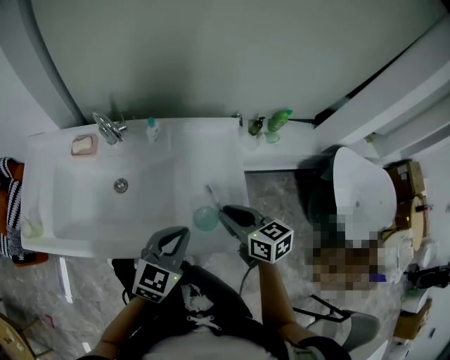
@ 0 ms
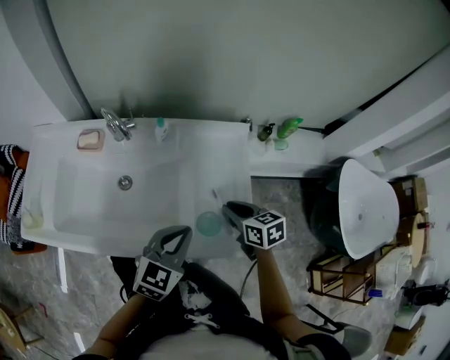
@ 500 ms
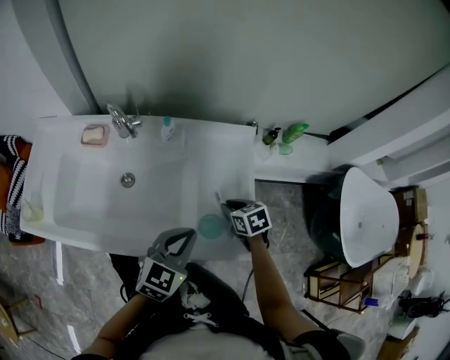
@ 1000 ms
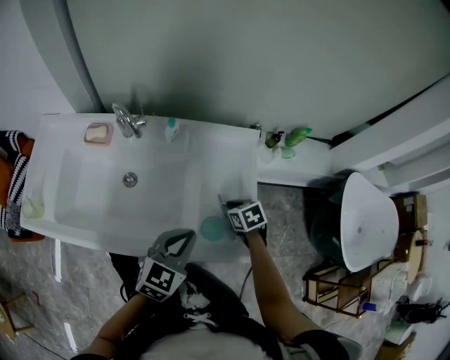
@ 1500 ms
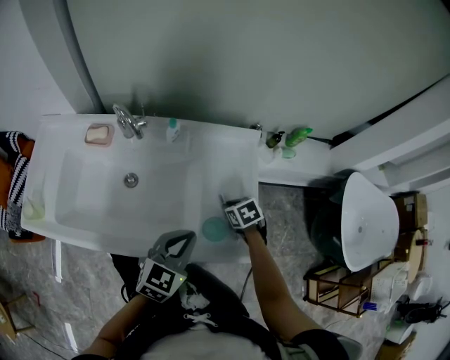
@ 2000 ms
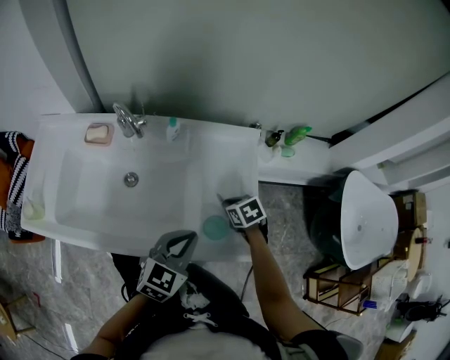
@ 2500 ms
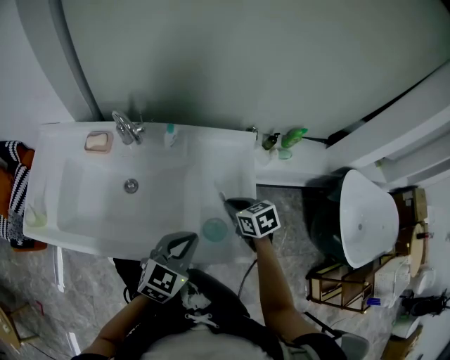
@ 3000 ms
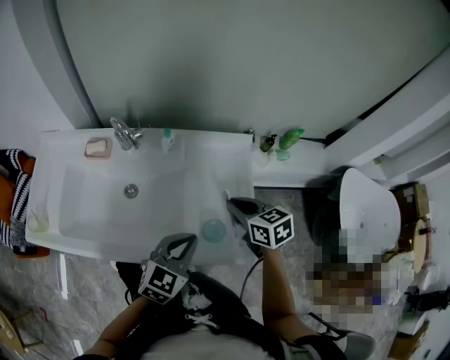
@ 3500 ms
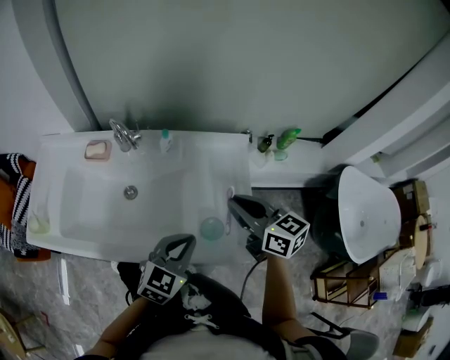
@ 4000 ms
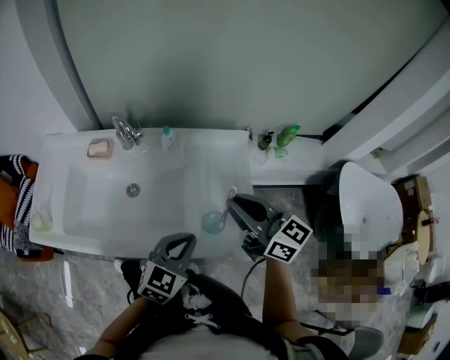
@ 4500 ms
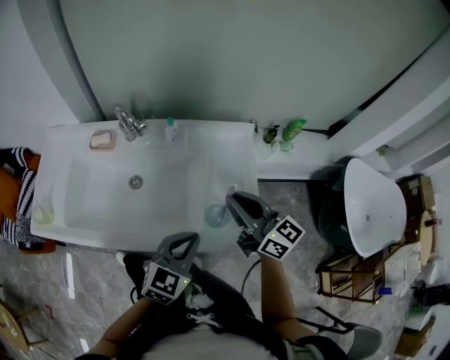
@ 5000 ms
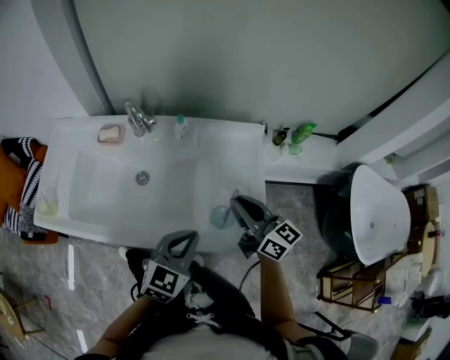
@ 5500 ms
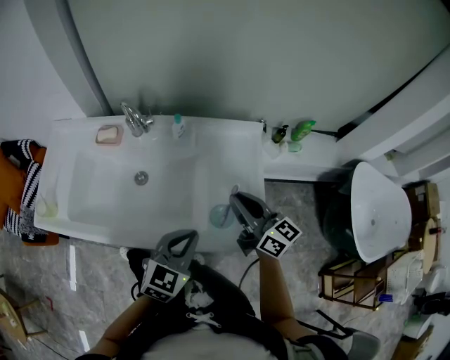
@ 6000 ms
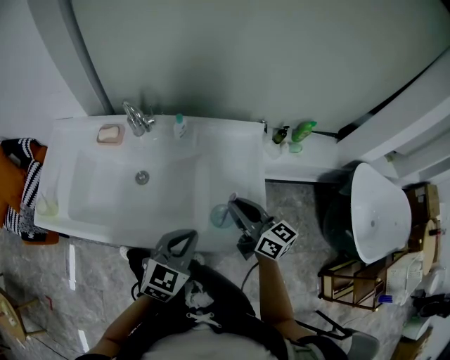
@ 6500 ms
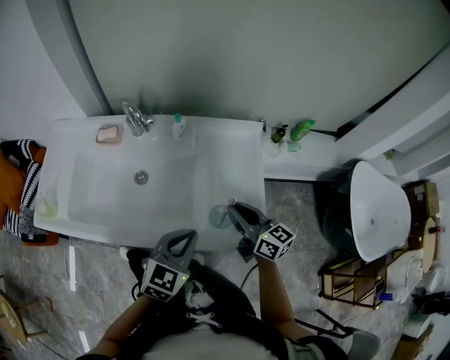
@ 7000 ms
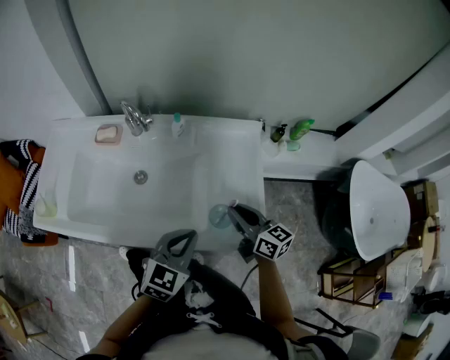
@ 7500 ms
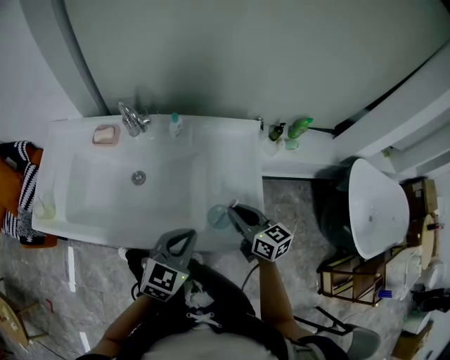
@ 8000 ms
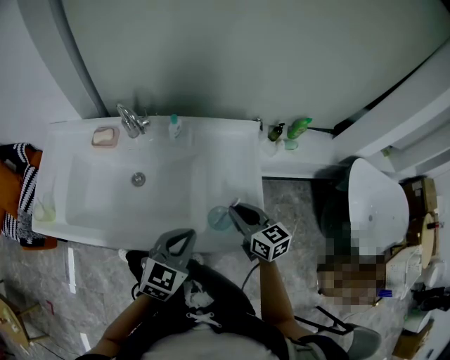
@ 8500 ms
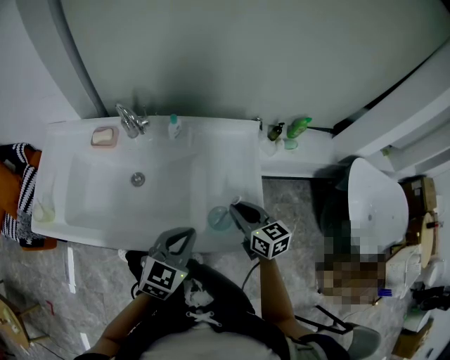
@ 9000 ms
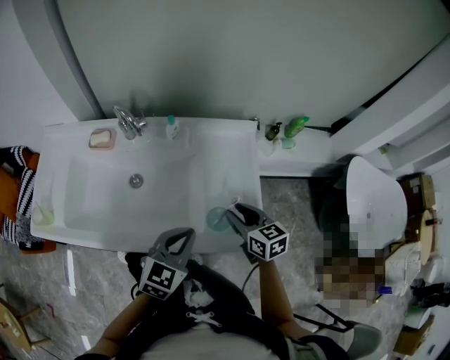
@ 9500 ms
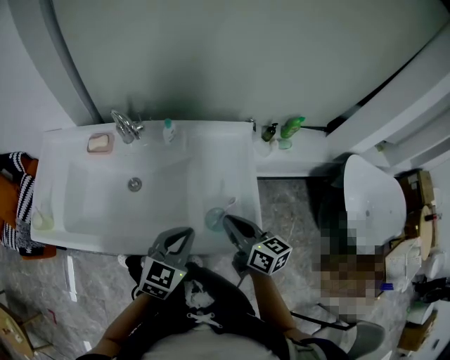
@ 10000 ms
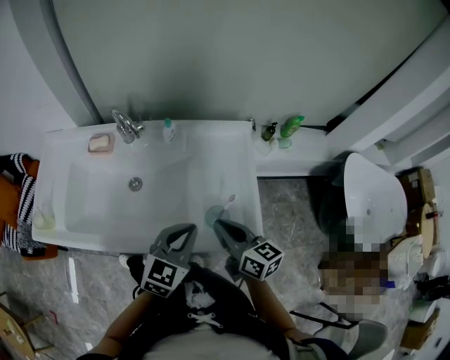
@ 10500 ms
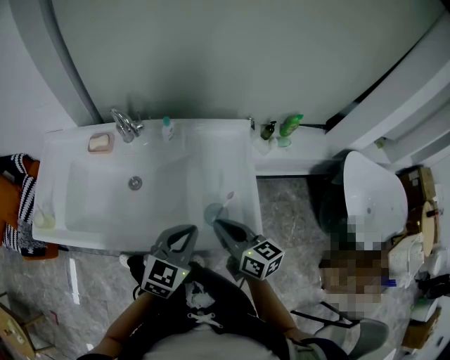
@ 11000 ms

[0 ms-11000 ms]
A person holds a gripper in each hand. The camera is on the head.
0 ms to 2000 ms: The right gripper moves downward and forward, about 20 cm, and tilts its fingers roughly 40 degrees downward.
2000 ms to 3500 ms: The right gripper is displaced upward by roughly 15 cm, and changes its angle by some 30 degrees.
3500 ms to 5500 ms: The right gripper goes some 5 cm upward, and angles its fingers upward, by about 40 degrees.
5500 ms to 7500 ms: The right gripper goes about 10 cm downward.
7500 ms to 9000 ms: There are only small adjustments of the grippers.
9000 ms to 11000 ms: The right gripper goes some 5 cm backward, and opens, then closes once more.

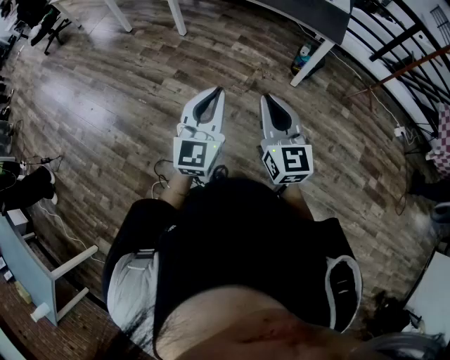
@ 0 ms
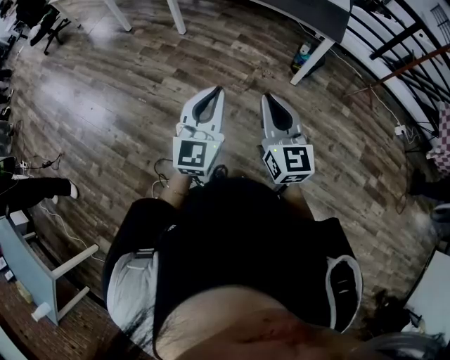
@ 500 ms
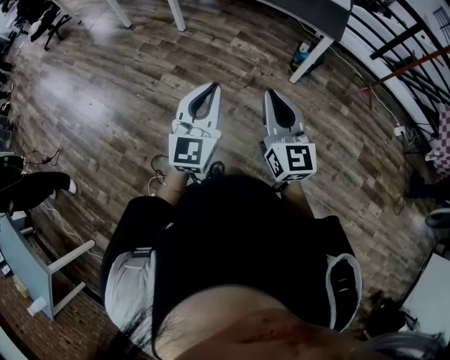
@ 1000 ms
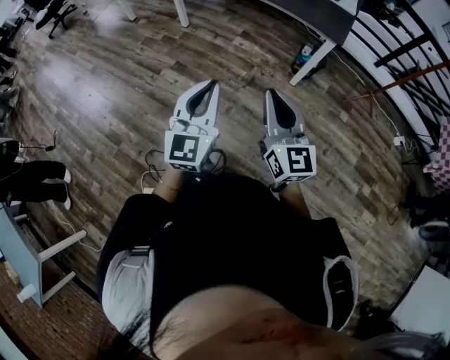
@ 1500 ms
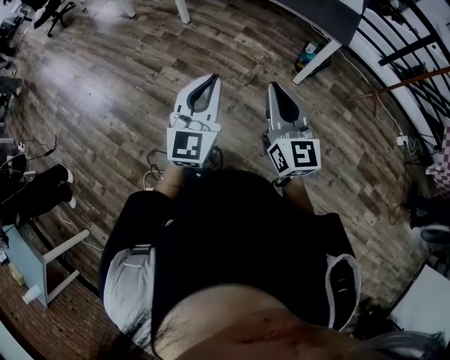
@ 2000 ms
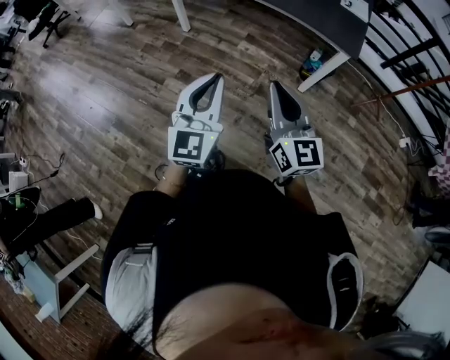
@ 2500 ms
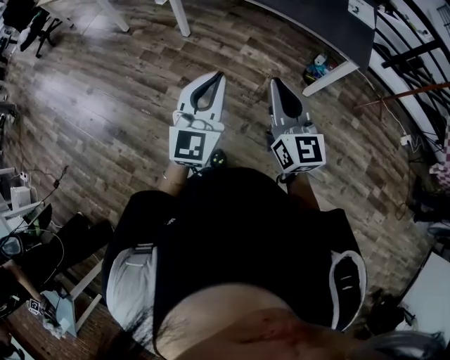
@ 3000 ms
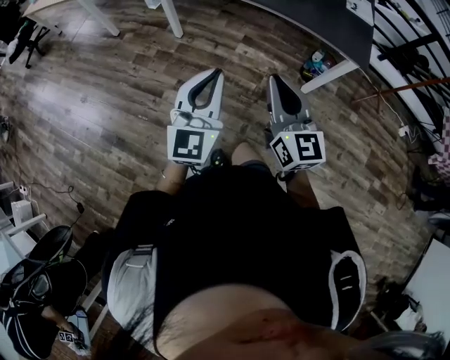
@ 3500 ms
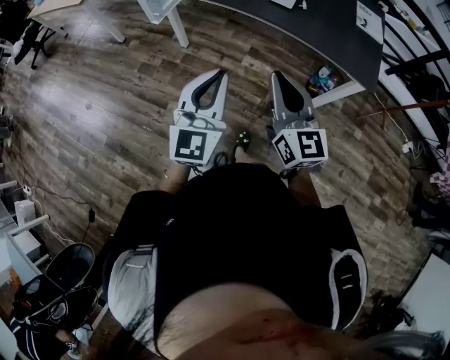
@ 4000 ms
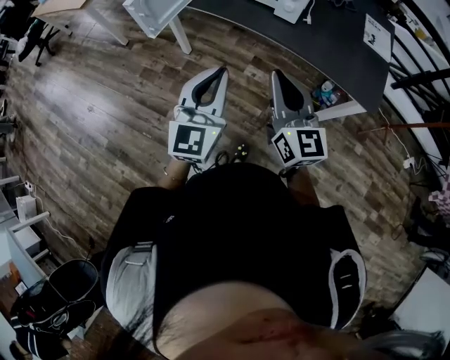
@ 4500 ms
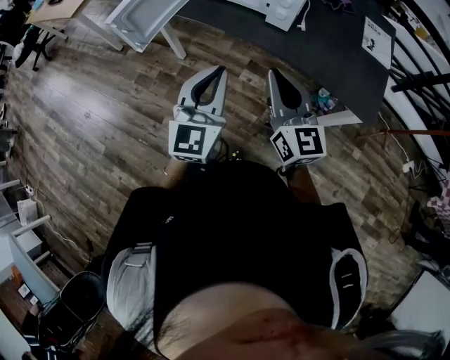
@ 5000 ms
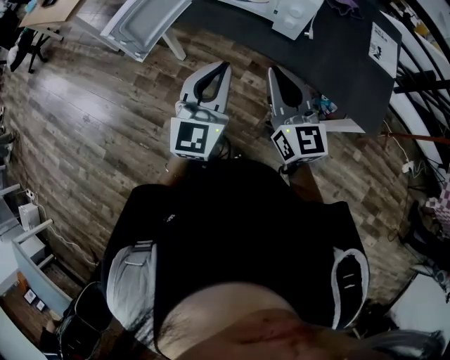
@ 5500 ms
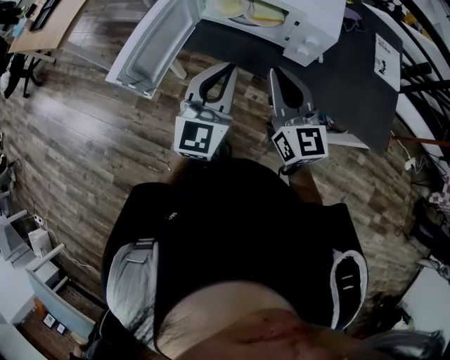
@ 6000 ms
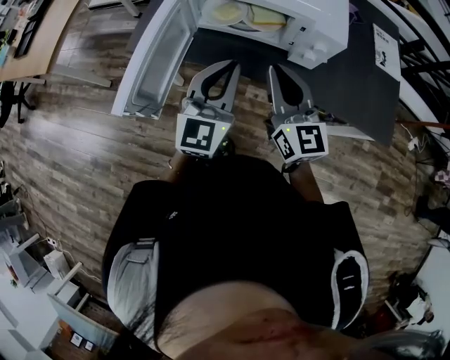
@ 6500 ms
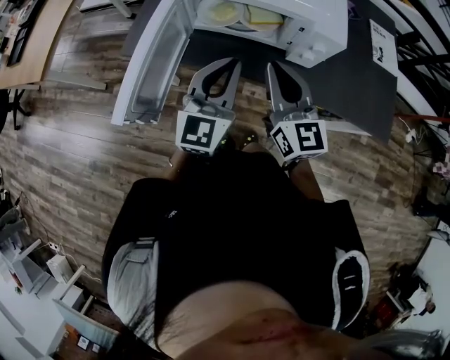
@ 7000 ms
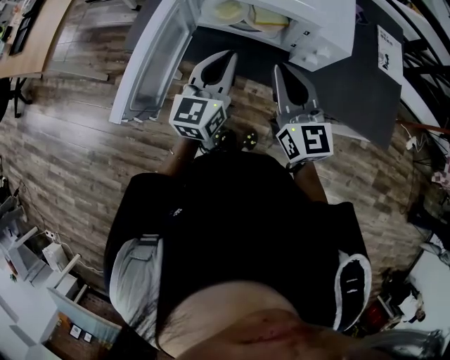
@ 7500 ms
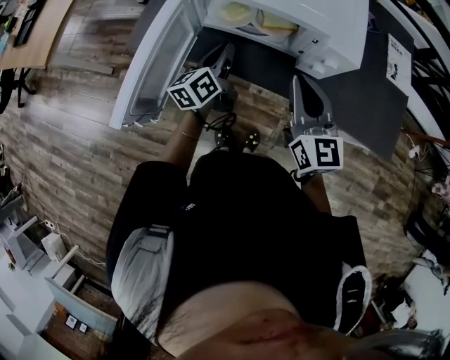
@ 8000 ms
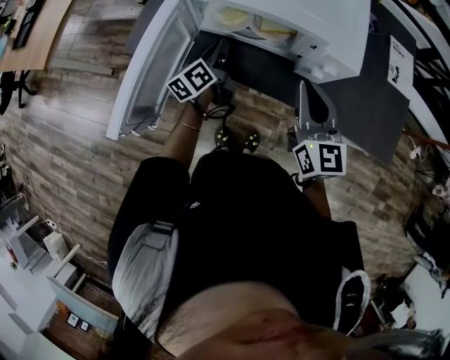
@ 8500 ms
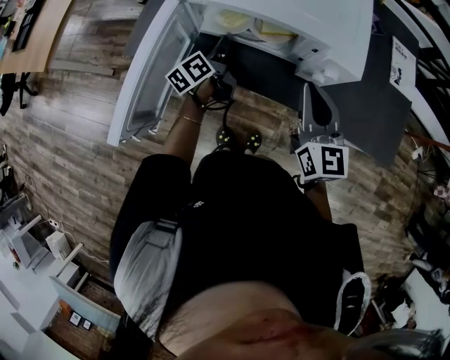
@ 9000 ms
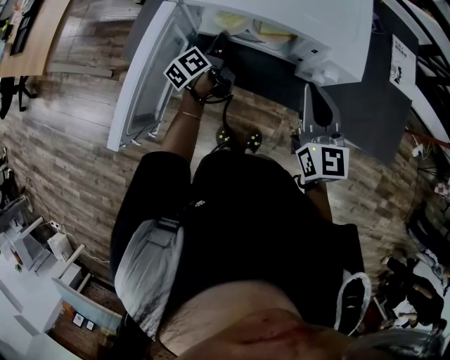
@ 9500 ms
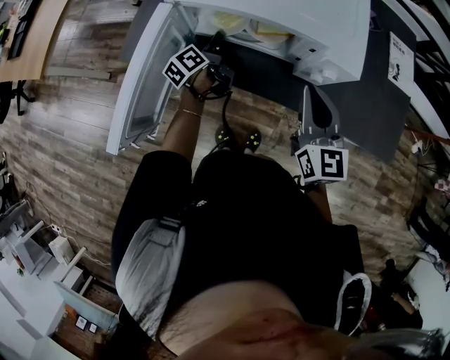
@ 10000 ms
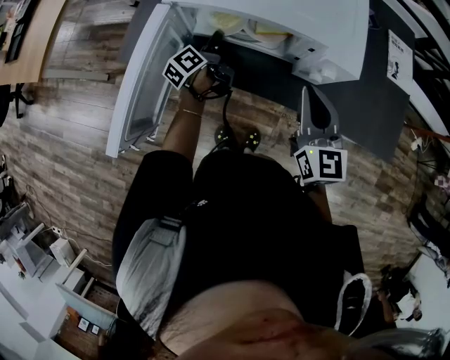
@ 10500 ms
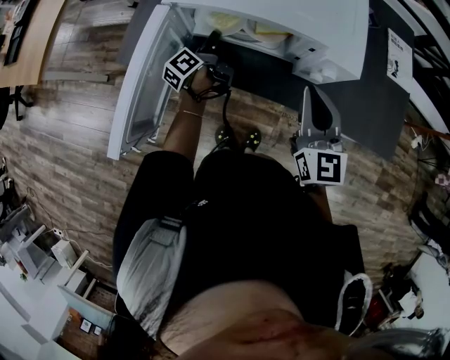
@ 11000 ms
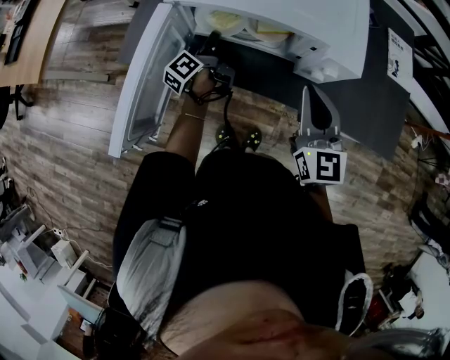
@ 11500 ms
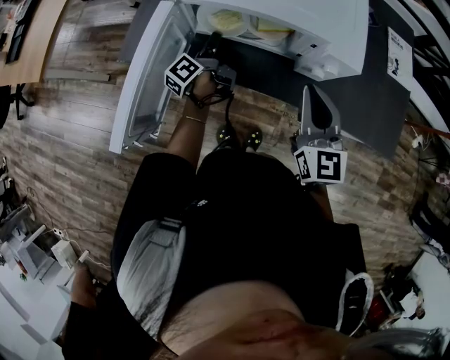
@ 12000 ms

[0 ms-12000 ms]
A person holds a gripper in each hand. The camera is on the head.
0 ms to 2000 ms: The right gripper travels to the right and forward by about 10 cm, while the left gripper shifts by roughly 5 cm.
2000 ms to 4000 ms: Both grippers travel together forward and to the left, approximately 35 cm.
4000 ms to 6000 ms: The grippers both shift forward by roughly 35 cm.
6000 ms to 8000 ms: The left gripper is displaced forward and downward by approximately 25 cm, and twists approximately 50 degrees counterclockwise, seen from behind. The right gripper goes some 10 cm forward.
8000 ms to 10000 ms: The left gripper travels forward and downward by roughly 10 cm, and rotates about 30 degrees.
10000 ms to 12000 ms: The grippers move only a little.

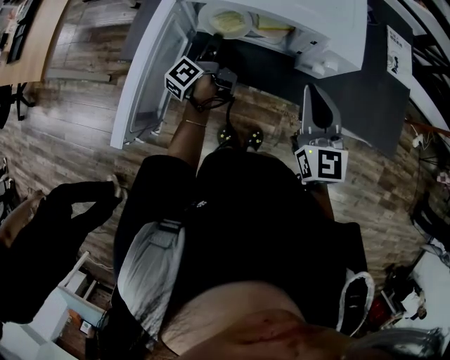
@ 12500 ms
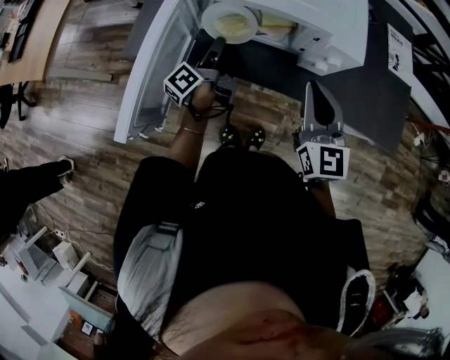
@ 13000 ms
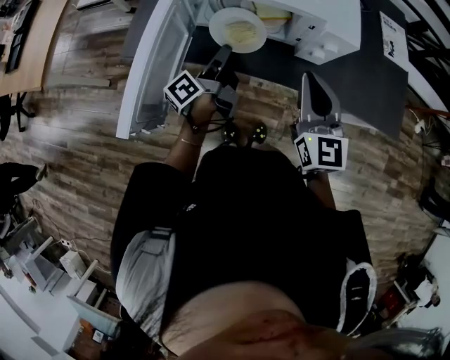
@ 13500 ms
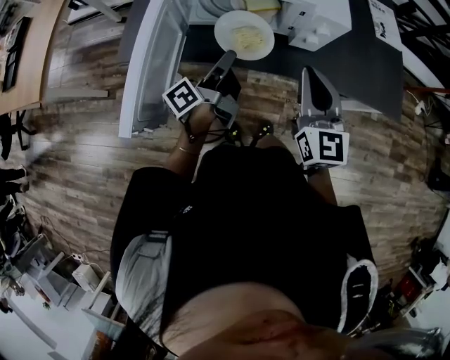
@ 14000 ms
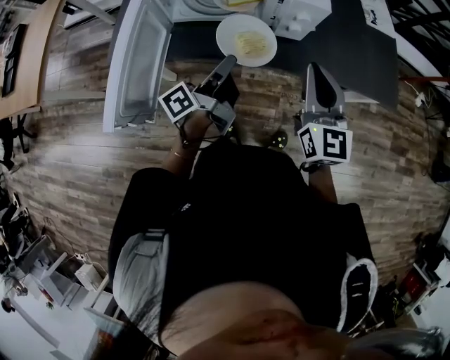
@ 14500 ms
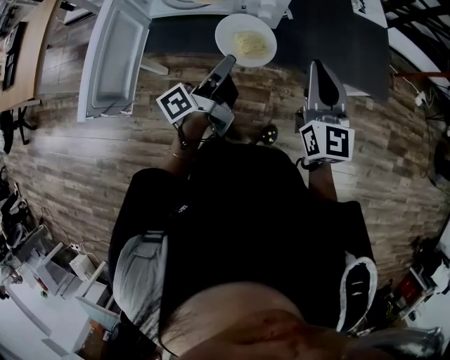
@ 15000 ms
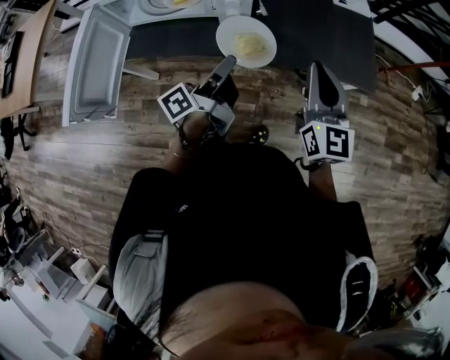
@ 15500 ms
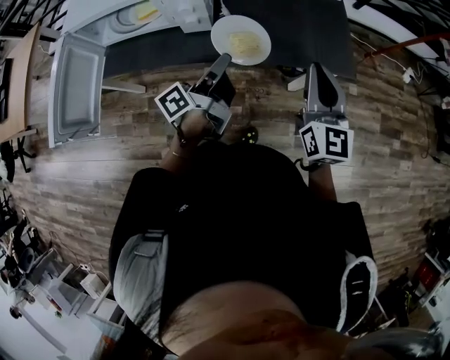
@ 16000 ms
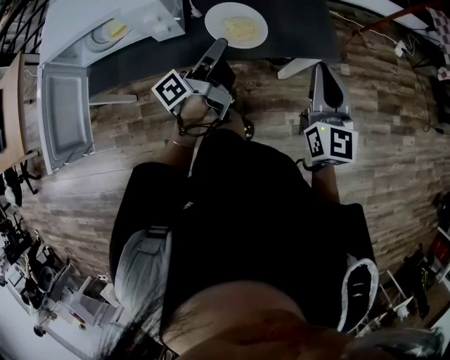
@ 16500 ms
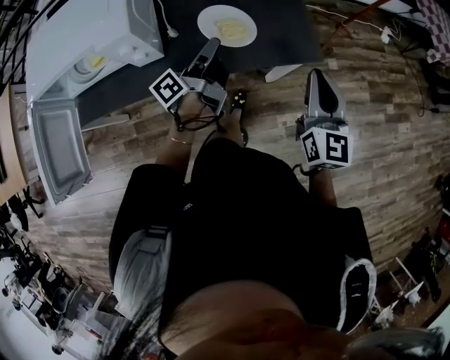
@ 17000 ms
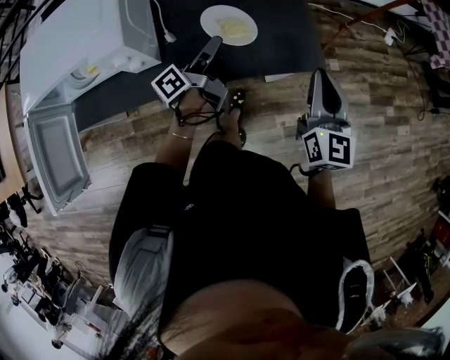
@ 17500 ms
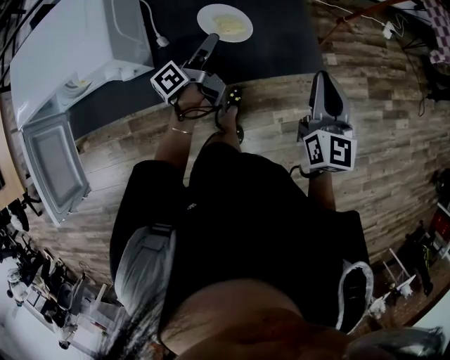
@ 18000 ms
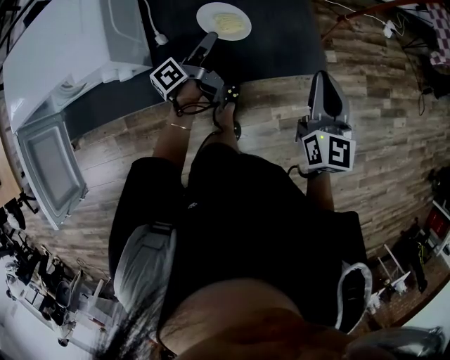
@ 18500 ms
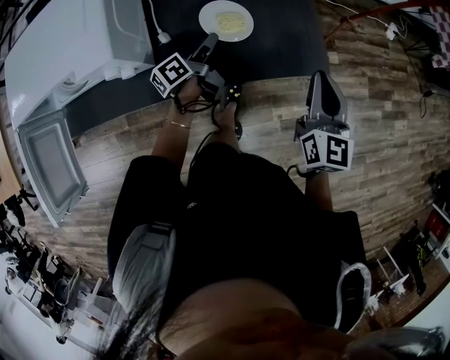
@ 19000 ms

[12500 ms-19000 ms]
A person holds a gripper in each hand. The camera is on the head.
12500 ms to 14500 ms: The left gripper goes approximately 20 cm backward, to the right and upward, and turns by roughly 30 degrees. Meanwhile the right gripper heads backward and to the right, covering roughly 10 cm.
14500 ms to 17000 ms: The left gripper travels to the right and forward by roughly 40 cm, while the right gripper is displaced to the right by approximately 40 cm, and changes its angle by roughly 20 degrees.
17000 ms to 19000 ms: The left gripper goes approximately 15 cm downward and forward. The right gripper heads forward, covering approximately 5 cm.
